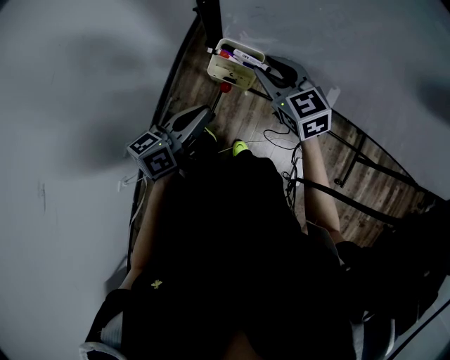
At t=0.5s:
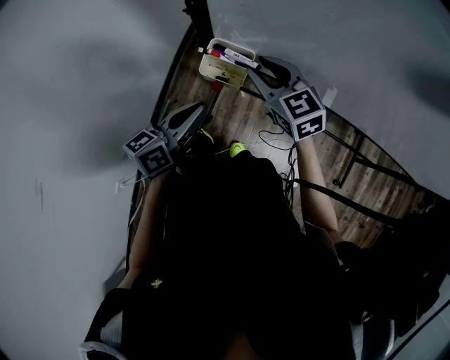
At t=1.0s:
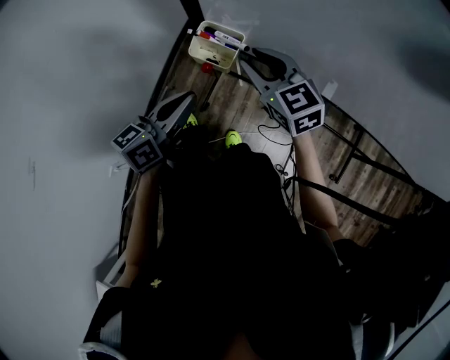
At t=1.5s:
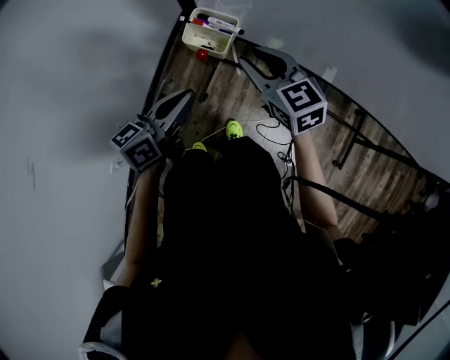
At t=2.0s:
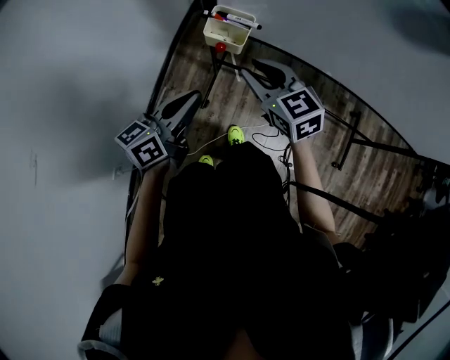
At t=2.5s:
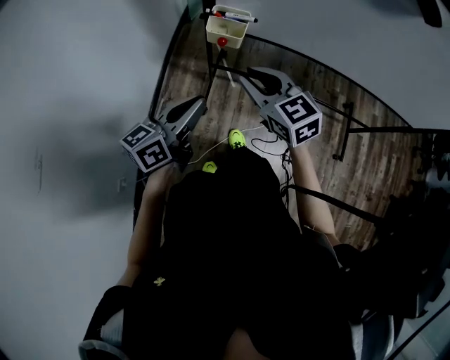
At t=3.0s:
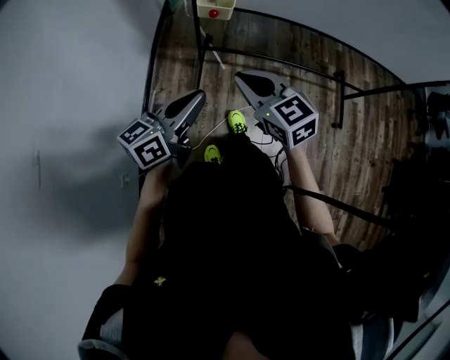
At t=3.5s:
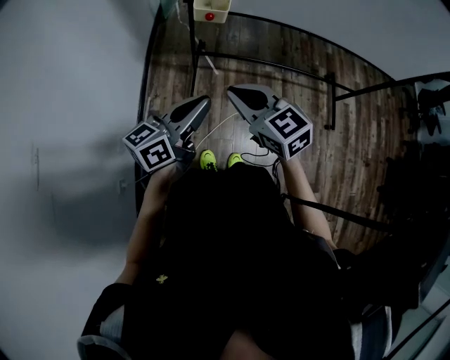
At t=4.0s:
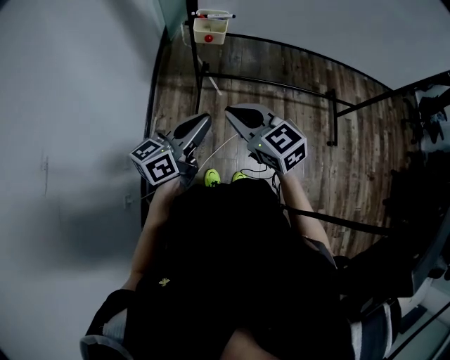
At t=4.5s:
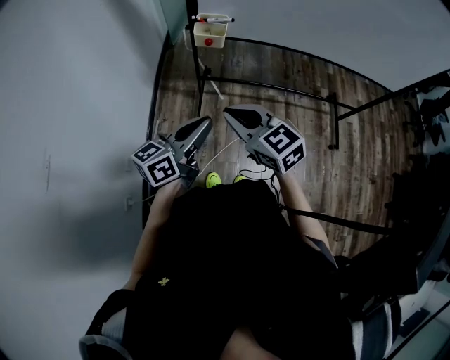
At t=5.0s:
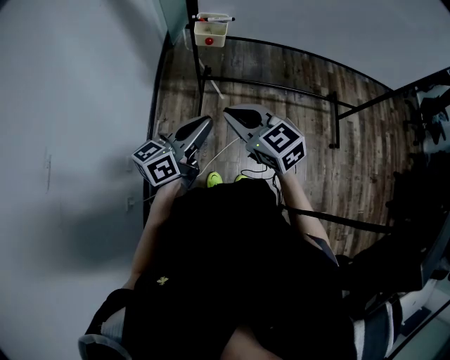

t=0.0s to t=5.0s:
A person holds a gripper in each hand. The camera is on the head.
t=0.0s to t=2.5s: Both grippers move backward, approximately 20 cm.
t=2.5s to t=5.0s: The two grippers go roughly 15 cm backward.

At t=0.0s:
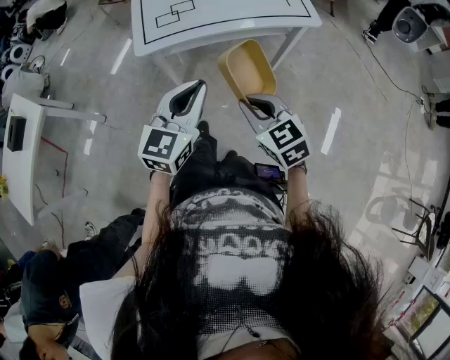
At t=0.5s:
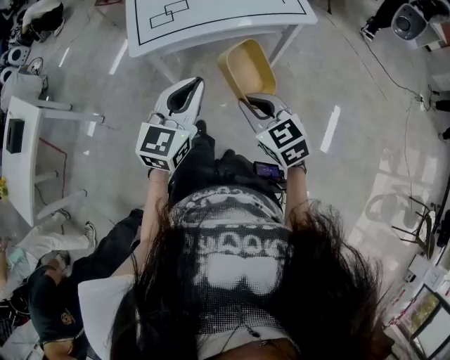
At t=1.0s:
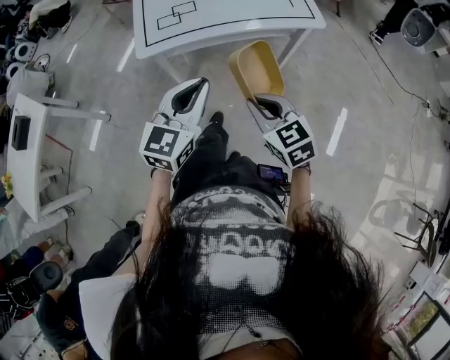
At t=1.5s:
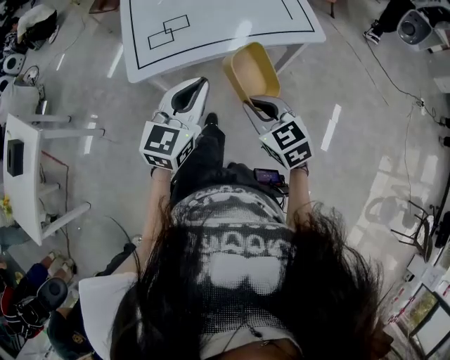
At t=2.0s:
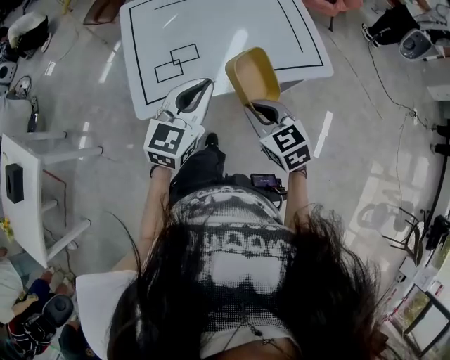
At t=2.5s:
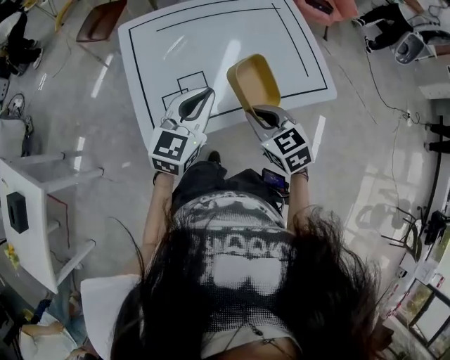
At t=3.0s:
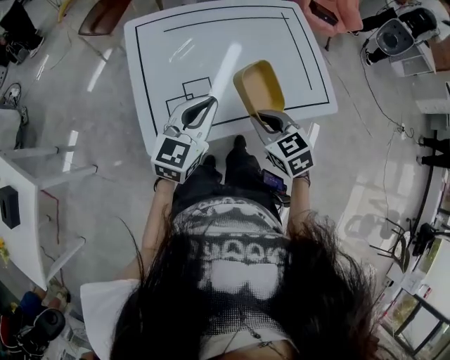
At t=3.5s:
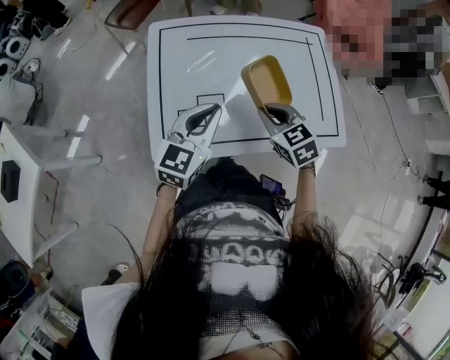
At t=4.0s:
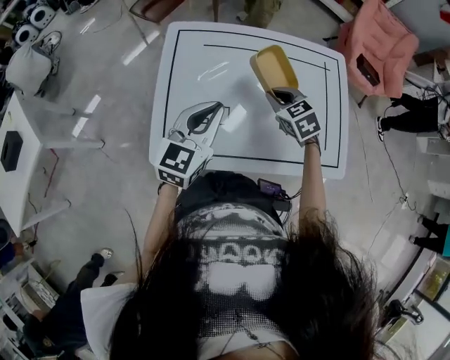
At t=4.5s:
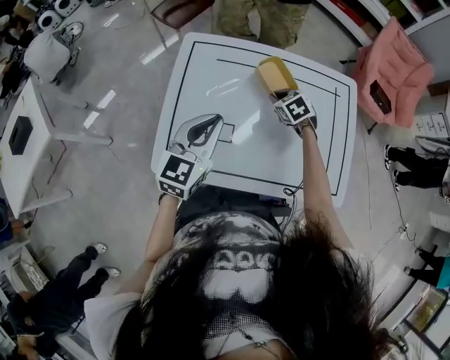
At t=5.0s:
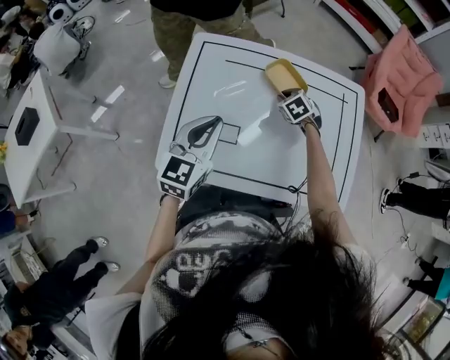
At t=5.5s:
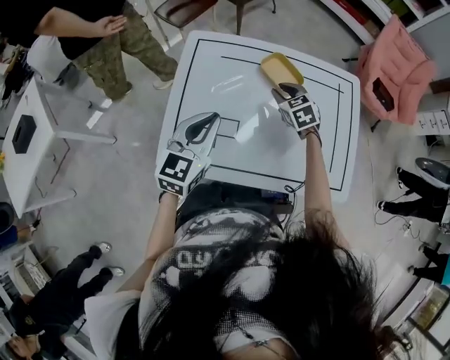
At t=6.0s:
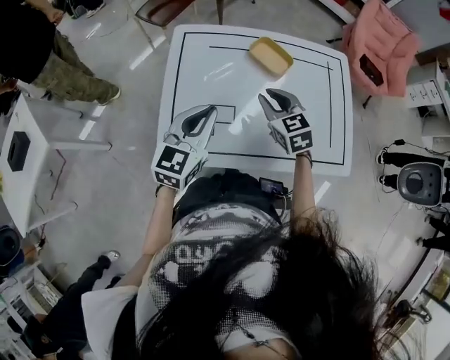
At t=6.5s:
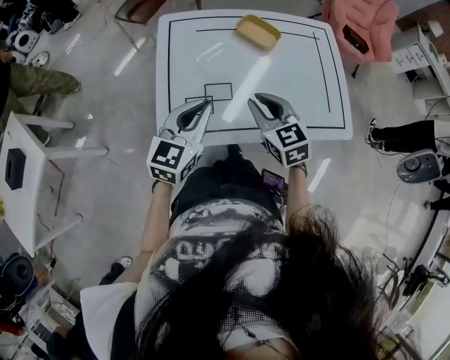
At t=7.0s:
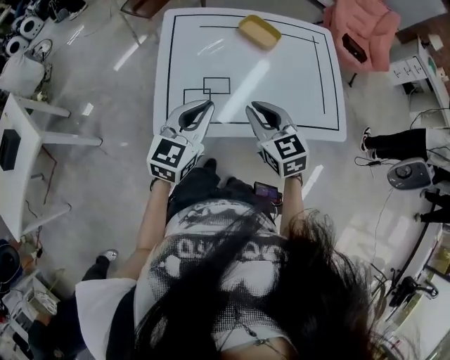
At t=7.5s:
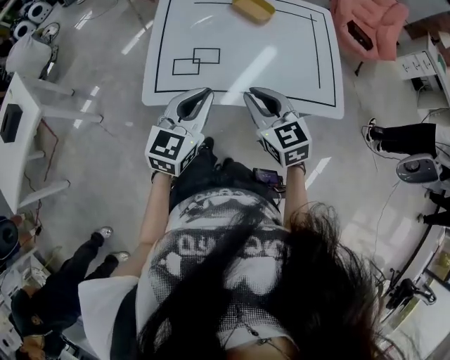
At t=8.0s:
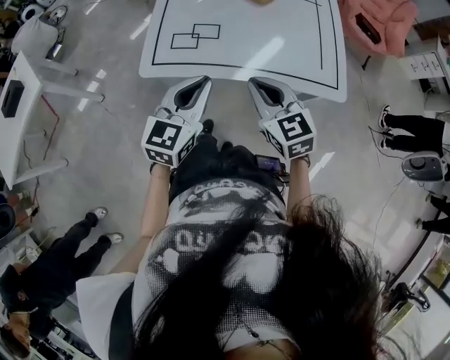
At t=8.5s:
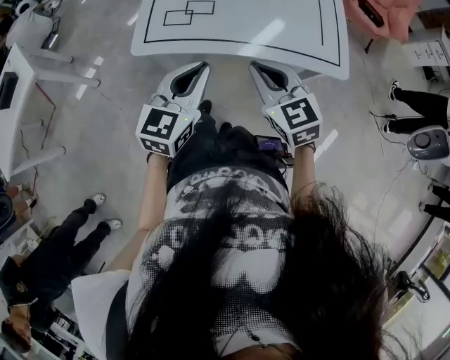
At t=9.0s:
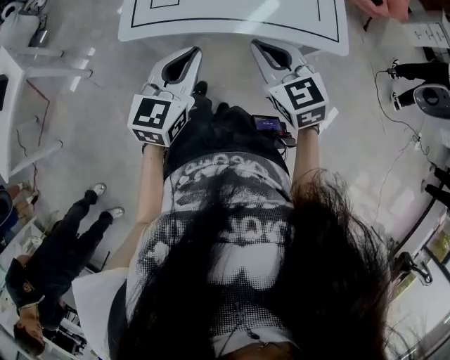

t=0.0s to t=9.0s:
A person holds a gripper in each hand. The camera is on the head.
t=0.0s to t=2.0s: Both grippers move forward, roughly 30 cm.
t=2.0s to t=4.5s: The left gripper heads forward, covering roughly 25 cm, and changes its angle by about 20 degrees; the right gripper goes some 50 cm forward, and changes its angle by about 30 degrees.
t=4.5s to t=7.0s: The left gripper shifts roughly 15 cm backward, while the right gripper heads backward and upward, covering roughly 35 cm, and turns by some 30 degrees.
t=7.0s to t=9.0s: The two grippers go about 20 cm backward and to the right.

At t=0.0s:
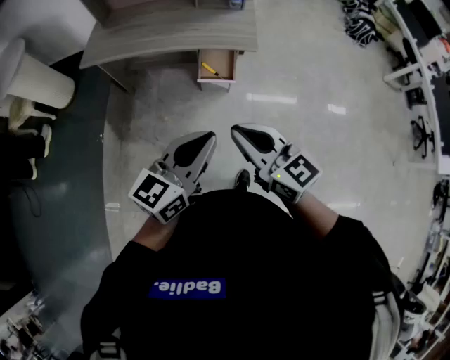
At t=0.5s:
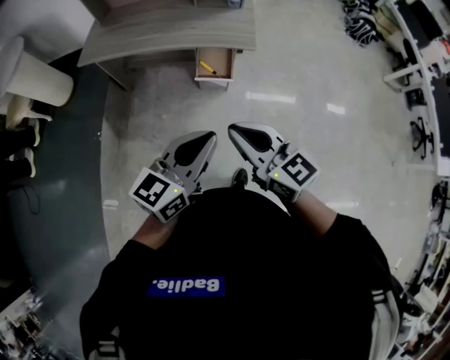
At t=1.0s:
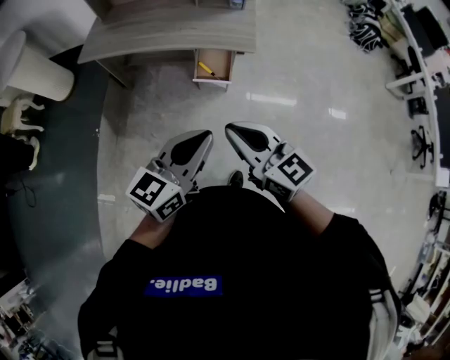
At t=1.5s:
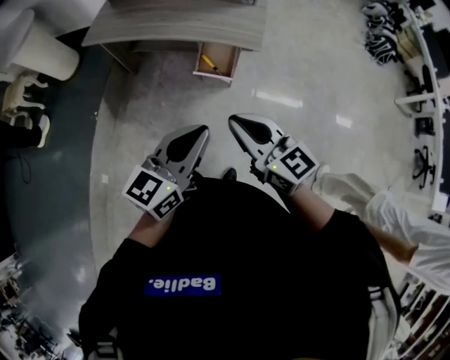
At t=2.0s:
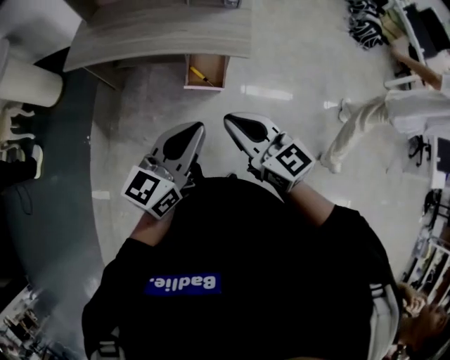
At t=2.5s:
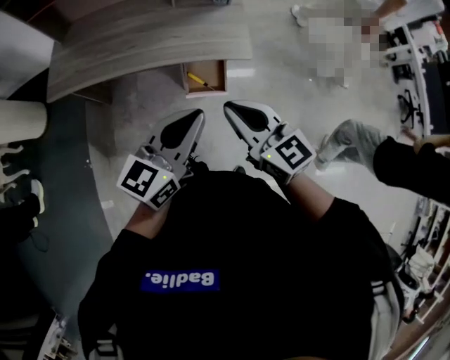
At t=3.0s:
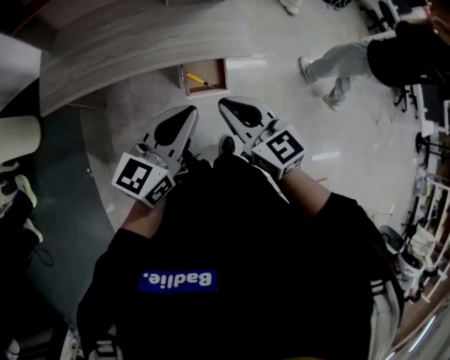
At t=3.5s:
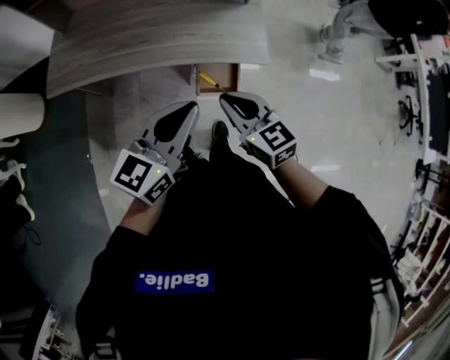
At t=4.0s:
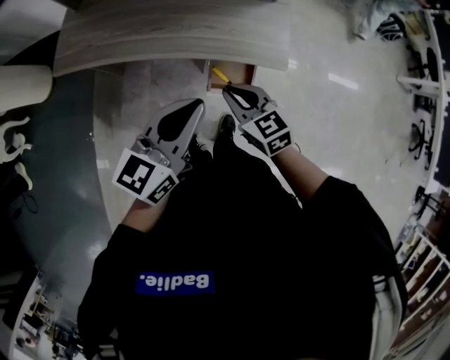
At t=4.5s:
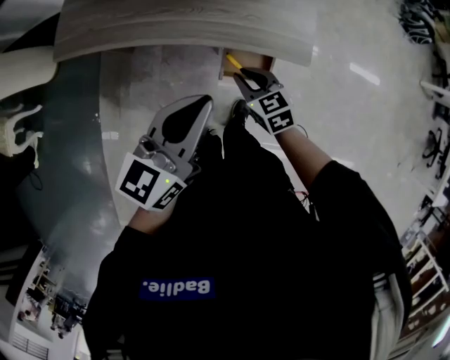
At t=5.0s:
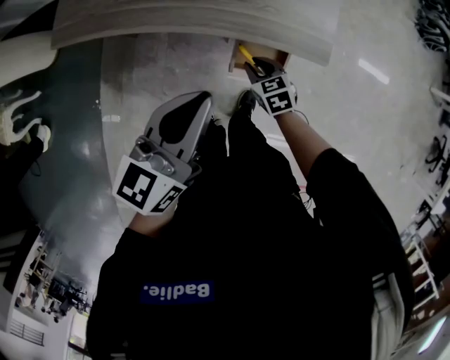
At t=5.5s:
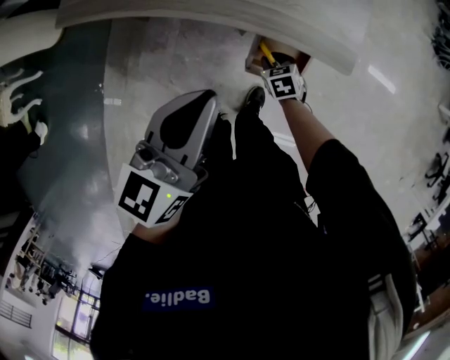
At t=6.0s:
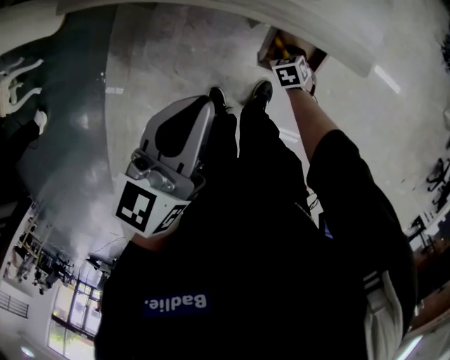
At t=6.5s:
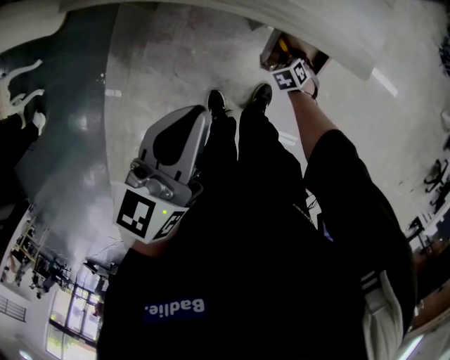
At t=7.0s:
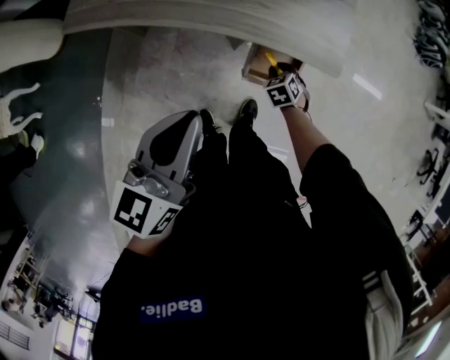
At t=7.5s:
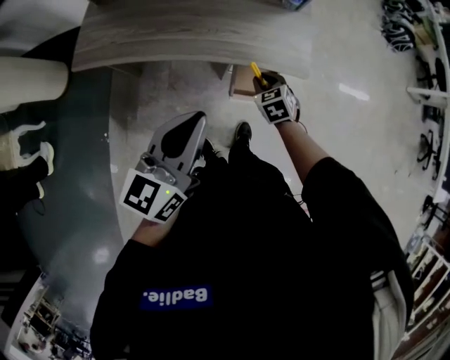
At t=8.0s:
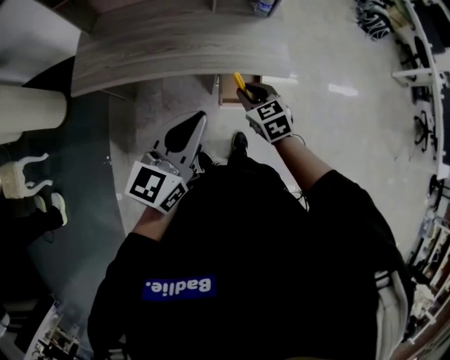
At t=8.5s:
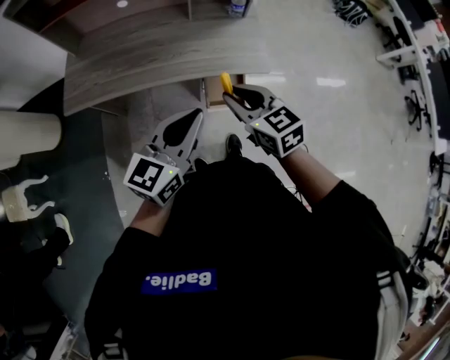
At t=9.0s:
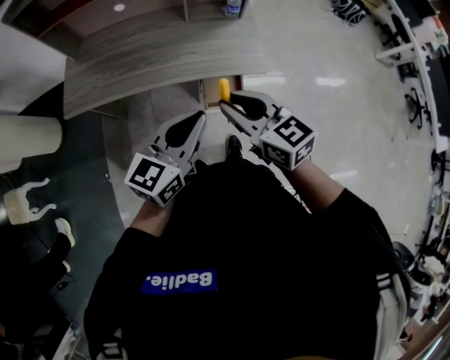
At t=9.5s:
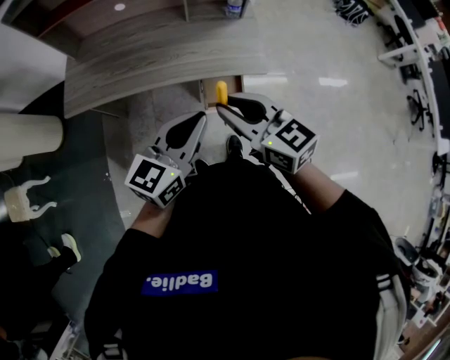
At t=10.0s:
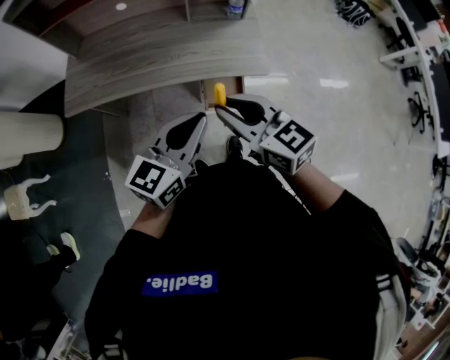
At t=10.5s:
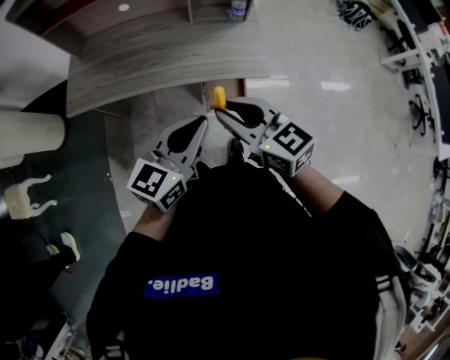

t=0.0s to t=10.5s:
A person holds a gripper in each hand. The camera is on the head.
t=0.0s to t=2.0s: Both grippers travel together forward, some 10 cm.
t=2.0s to t=4.0s: The right gripper goes roughly 25 cm forward, downward and to the left, and swivels about 20 degrees, while the left gripper goes roughly 25 cm forward and to the left.
t=4.0s to t=6.5s: The left gripper moves to the left and downward, some 15 cm, and turns by some 20 degrees; the right gripper moves downward, some 35 cm, and tips its fingers downward by some 30 degrees.
t=6.5s to t=8.5s: The right gripper travels upward by approximately 50 cm, and tips its fingers upward by approximately 40 degrees; the left gripper is displaced upward and to the right by roughly 15 cm, and rotates approximately 30 degrees.
t=8.5s to t=10.5s: The right gripper goes approximately 5 cm upward.

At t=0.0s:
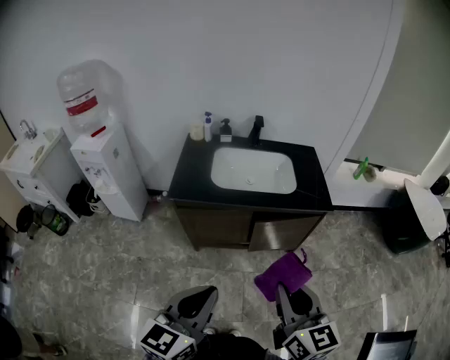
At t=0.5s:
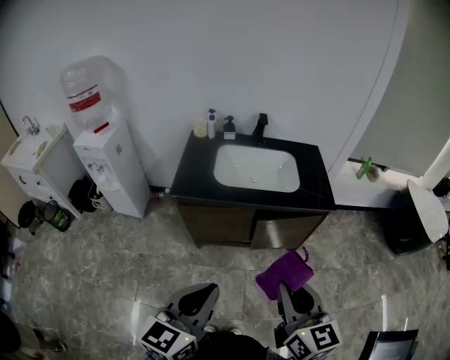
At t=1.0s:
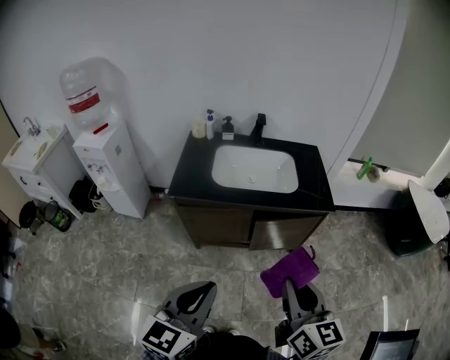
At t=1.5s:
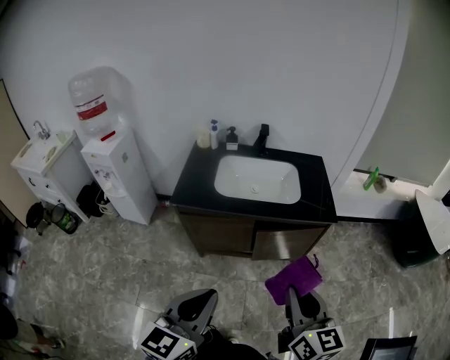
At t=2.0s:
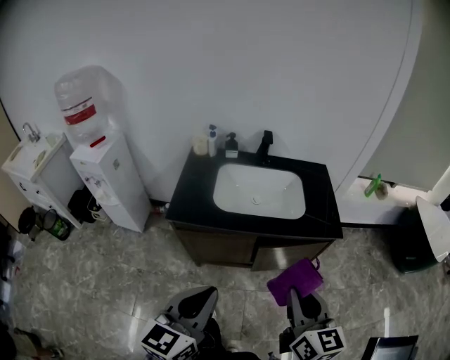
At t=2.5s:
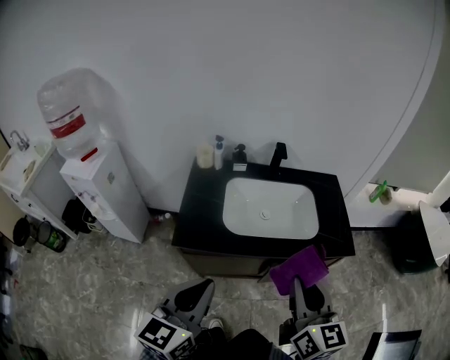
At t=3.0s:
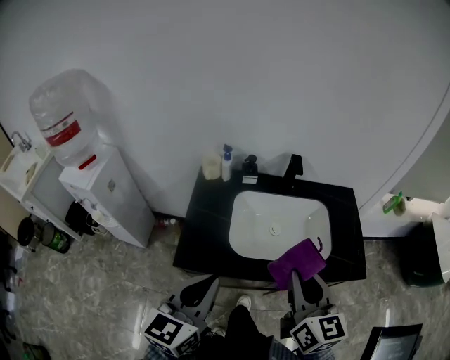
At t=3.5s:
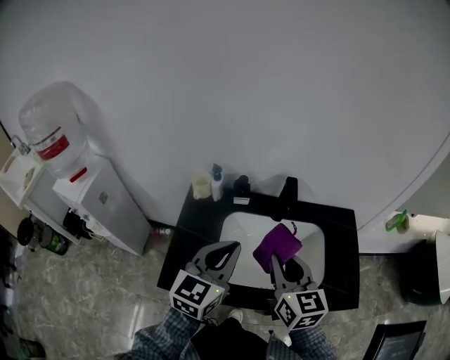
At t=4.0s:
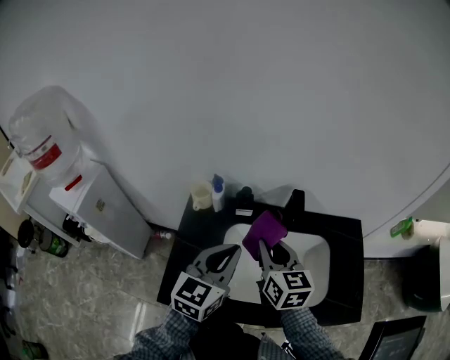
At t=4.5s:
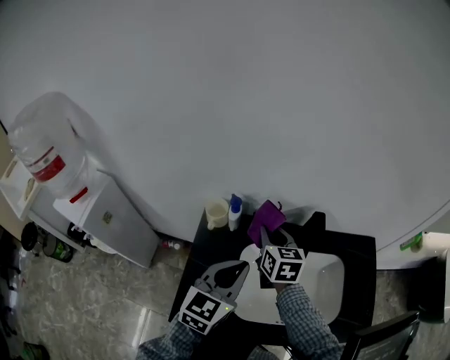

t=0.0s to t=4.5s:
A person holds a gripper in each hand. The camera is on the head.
t=0.0s to t=2.0s: The grippers both shift forward by roughly 10 cm.
t=2.0s to t=4.5s: Both grippers are carried forward, about 60 cm.
